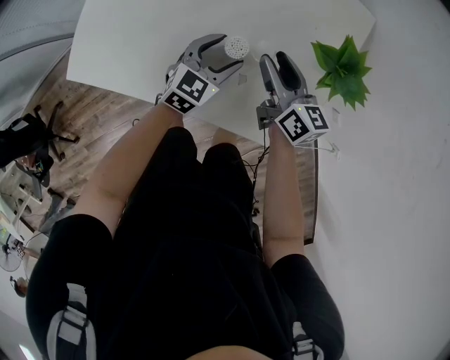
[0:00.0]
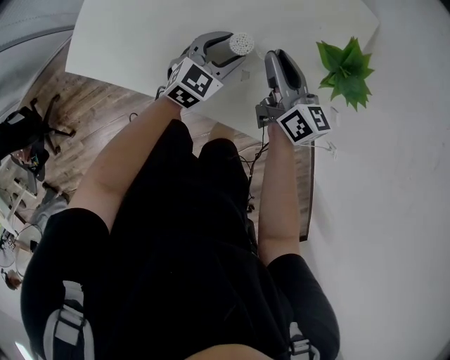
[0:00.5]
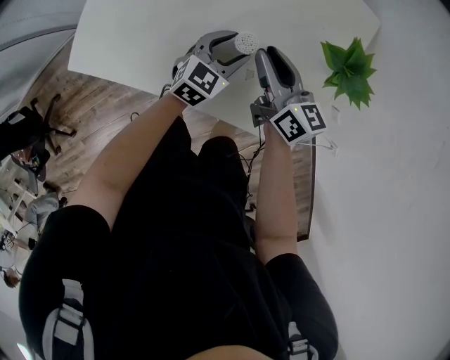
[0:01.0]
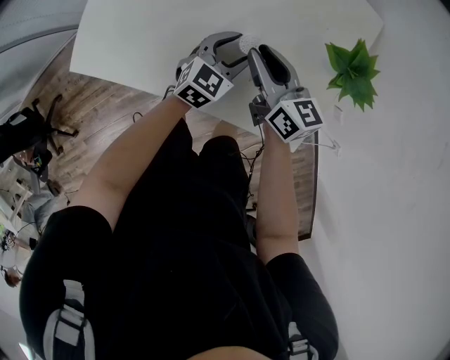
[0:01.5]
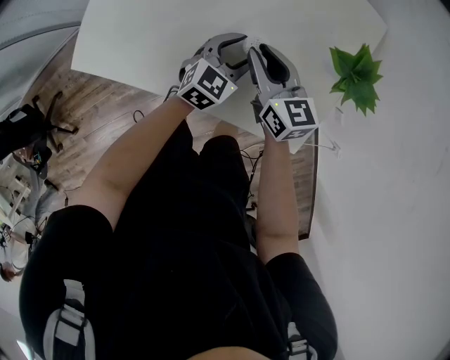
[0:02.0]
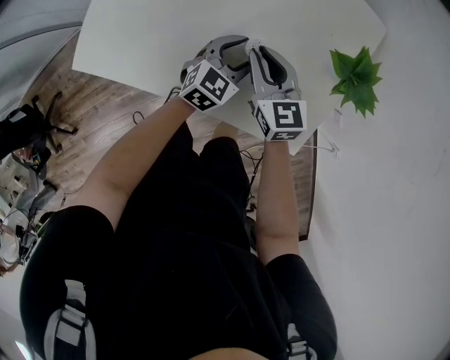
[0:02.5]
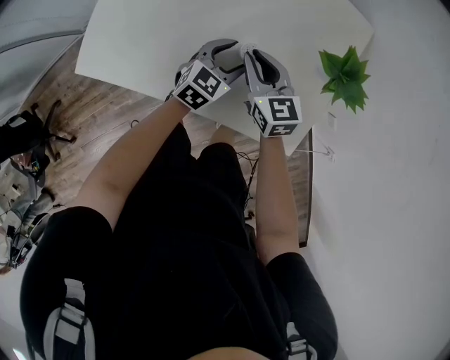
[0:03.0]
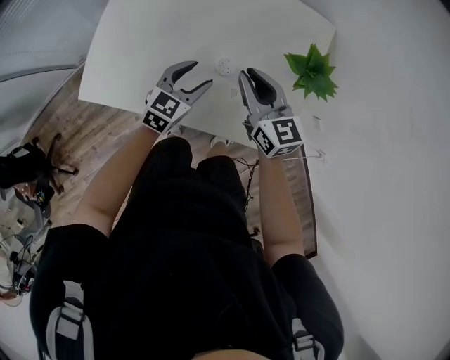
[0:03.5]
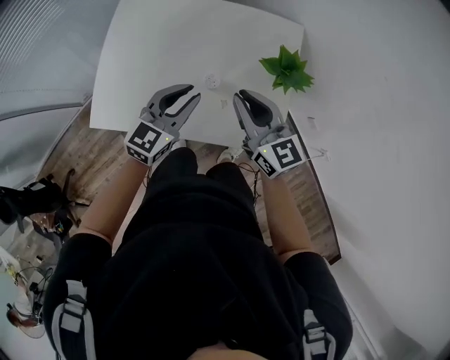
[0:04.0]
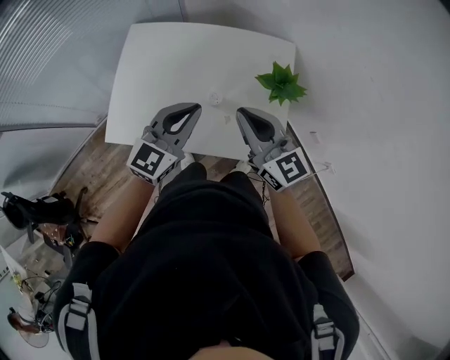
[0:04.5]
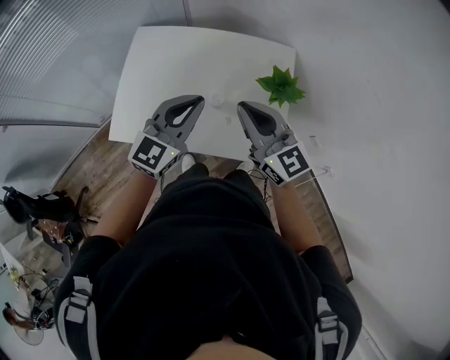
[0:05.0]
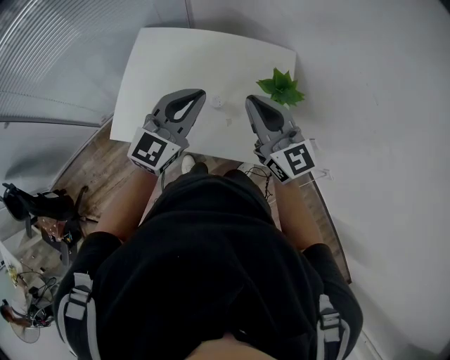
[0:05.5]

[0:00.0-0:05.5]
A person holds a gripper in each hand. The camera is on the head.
0:00.0 to 0:02.0: The right gripper heads to the left, covering roughly 10 cm.
0:02.0 to 0:03.5: The left gripper is displaced upward and to the left by some 10 cm, while the right gripper travels upward by approximately 10 cm.
0:03.5 to 0:05.5: Both grippers move upward, some 30 cm. The left gripper rotates about 30 degrees, and closes its fingers, while the right gripper turns by about 20 degrees.

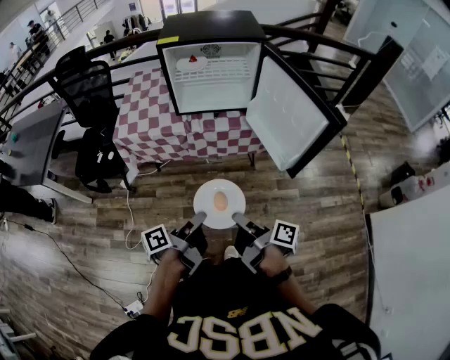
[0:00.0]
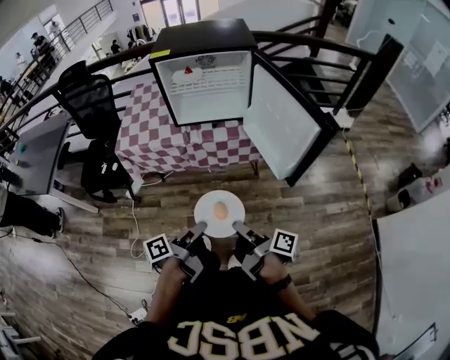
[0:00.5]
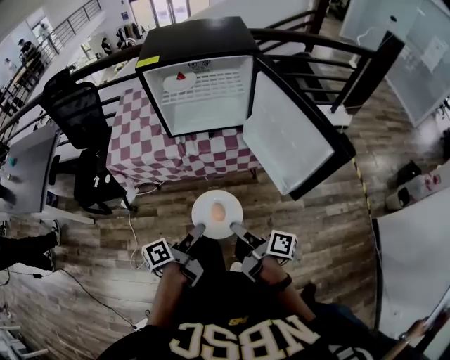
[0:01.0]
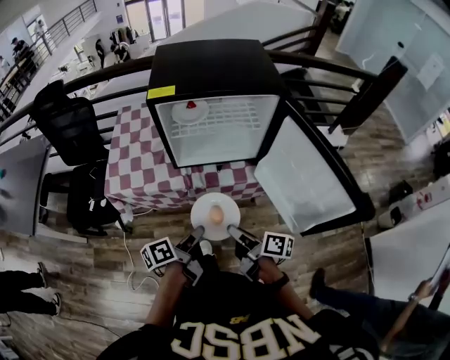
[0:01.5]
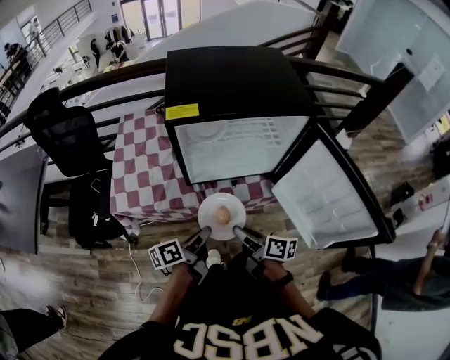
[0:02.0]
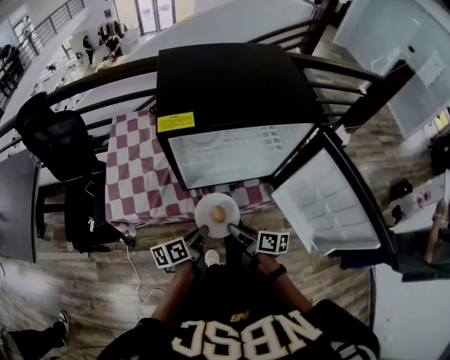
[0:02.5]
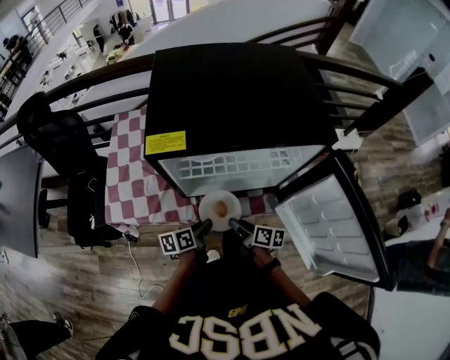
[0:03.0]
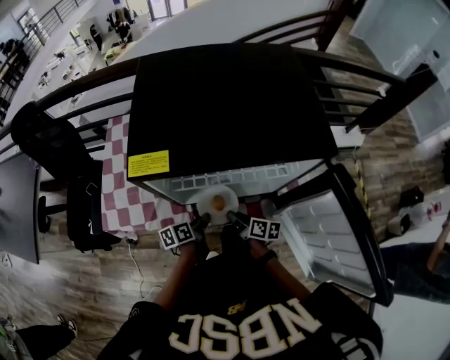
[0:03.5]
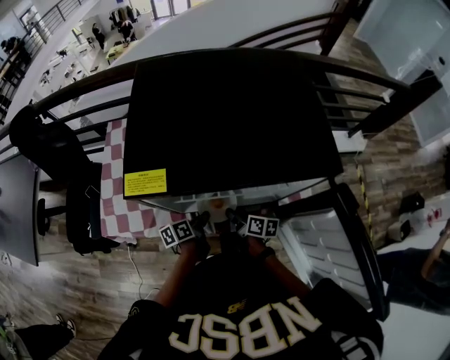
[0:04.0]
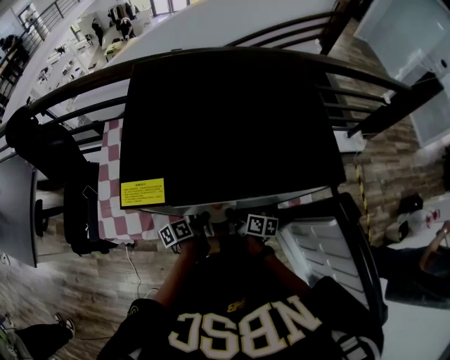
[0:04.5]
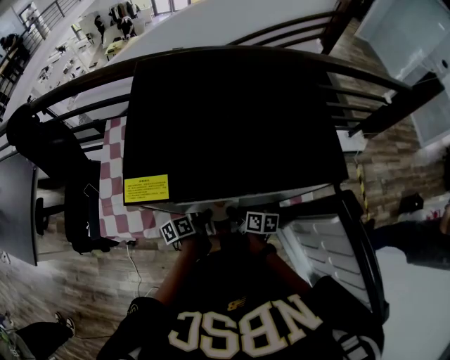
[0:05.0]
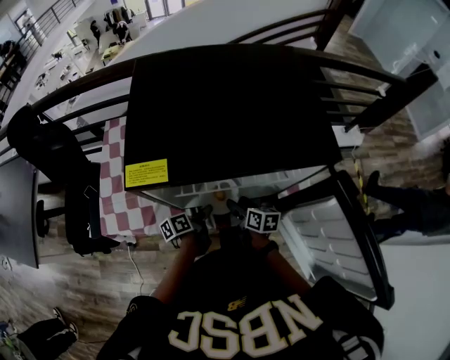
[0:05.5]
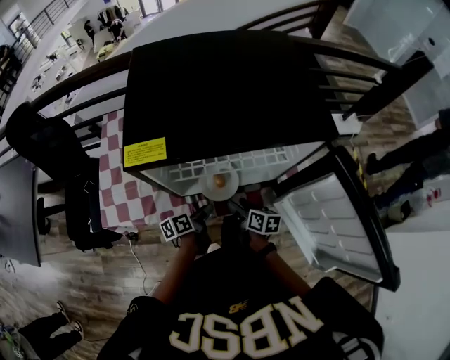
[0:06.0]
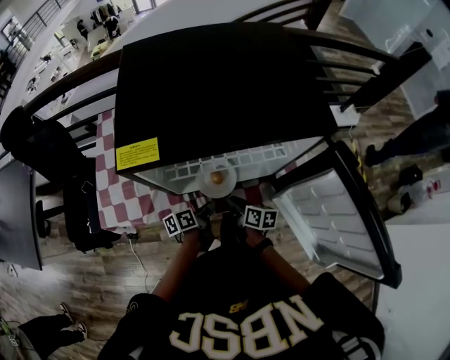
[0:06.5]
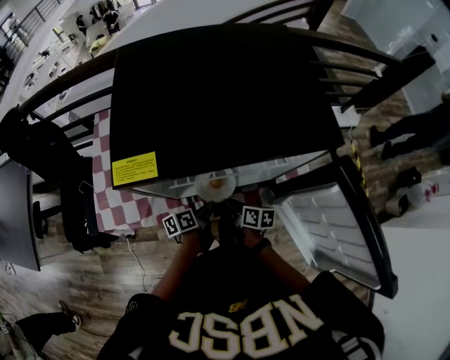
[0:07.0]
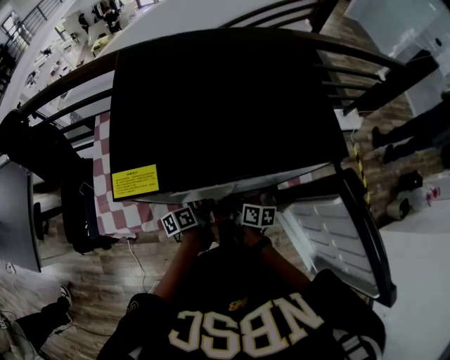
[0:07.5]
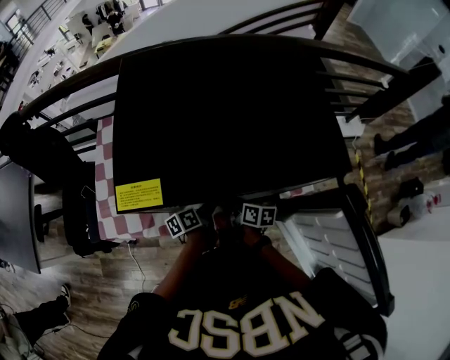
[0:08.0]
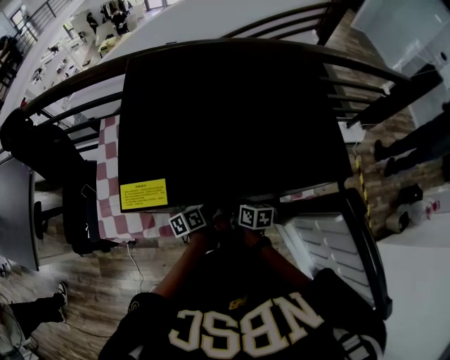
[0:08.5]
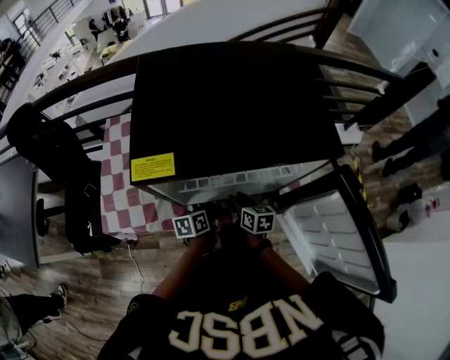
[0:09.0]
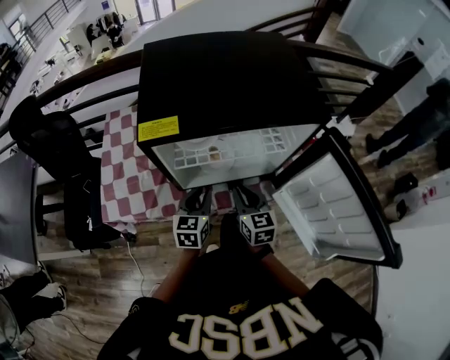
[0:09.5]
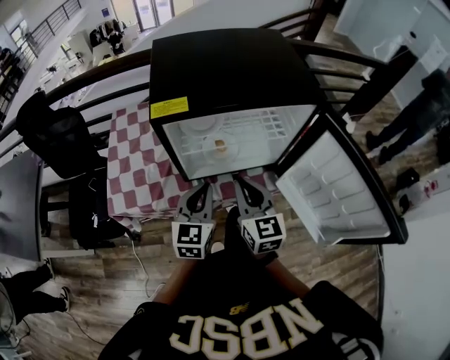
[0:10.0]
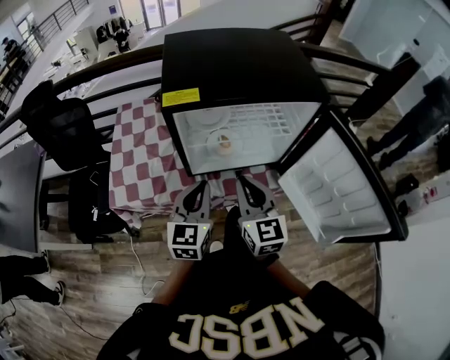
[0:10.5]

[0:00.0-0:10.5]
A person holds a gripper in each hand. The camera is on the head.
0:00.0 to 0:02.0: The two grippers go approximately 35 cm forward. The right gripper swivels approximately 30 degrees.
0:02.0 to 0:04.0: The two grippers go some 30 cm forward and downward.
0:04.0 to 0:06.5: The left gripper changes place by some 5 cm; the right gripper opens, then closes again.
0:06.5 to 0:08.5: Both grippers travel together forward, approximately 10 cm.
0:08.5 to 0:10.5: The grippers both shift upward and backward by approximately 30 cm. The right gripper changes its angle by some 50 degrees, while the left gripper rolls clockwise, seen from behind, by roughly 60 degrees, and opens, then closes again.

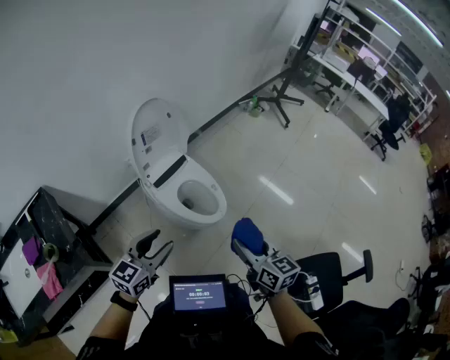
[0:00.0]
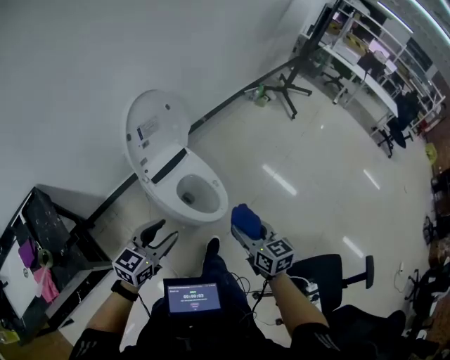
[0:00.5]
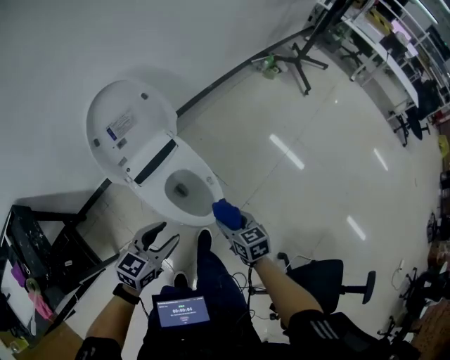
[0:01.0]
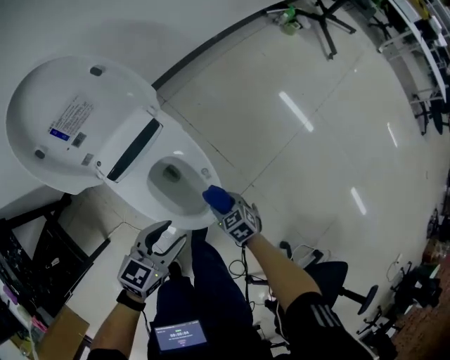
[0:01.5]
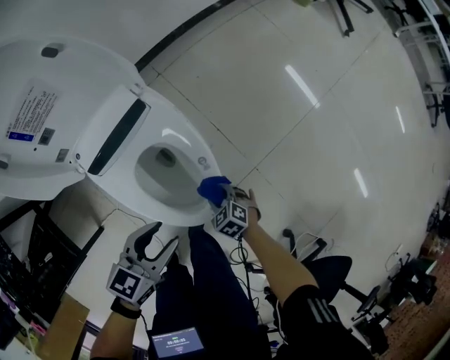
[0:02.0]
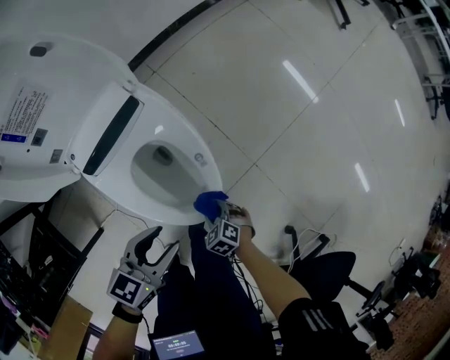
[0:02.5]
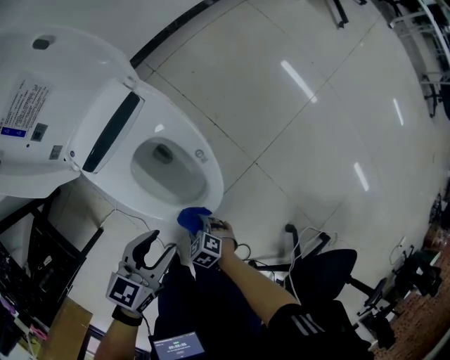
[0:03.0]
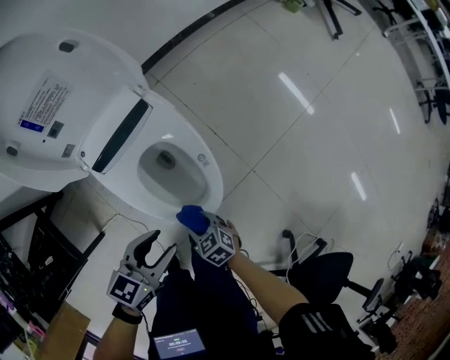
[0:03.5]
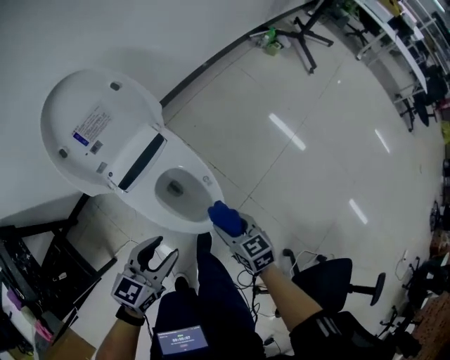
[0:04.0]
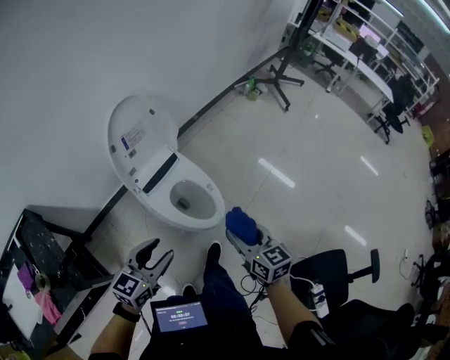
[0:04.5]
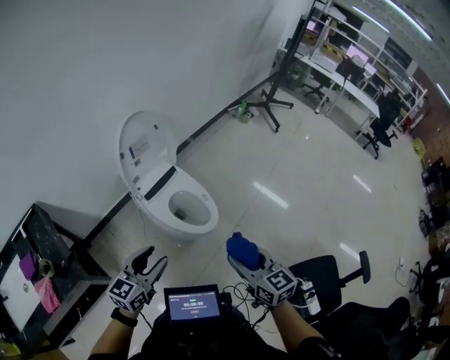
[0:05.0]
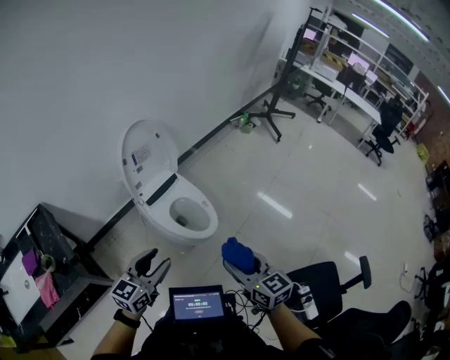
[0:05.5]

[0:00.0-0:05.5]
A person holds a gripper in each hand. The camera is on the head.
0:00.0 to 0:02.0: The left gripper is displaced downward, forward and to the right by about 50 cm, and turns by about 30 degrees; the right gripper shifts roughly 70 cm downward and forward, and points its fingers roughly 50 degrees further downward.
0:02.0 to 0:03.5: The left gripper shifts by roughly 5 cm. Meanwhile the right gripper changes place by about 15 cm.
0:03.5 to 0:05.5: The grippers both shift upward and backward by some 60 cm. The left gripper rotates approximately 30 degrees. The right gripper tilts its fingers approximately 30 degrees upward.

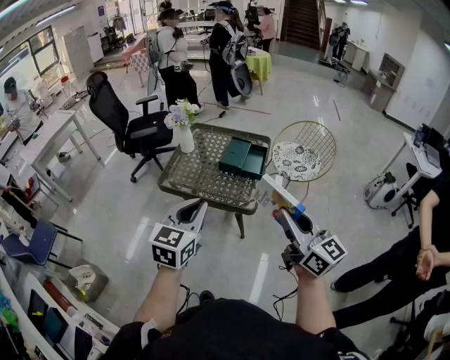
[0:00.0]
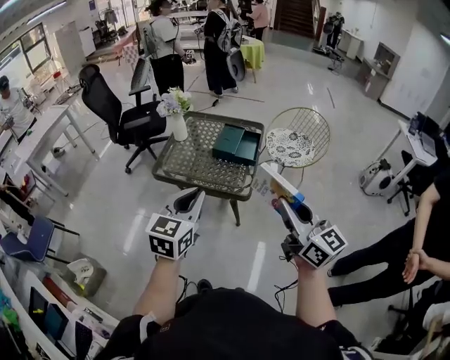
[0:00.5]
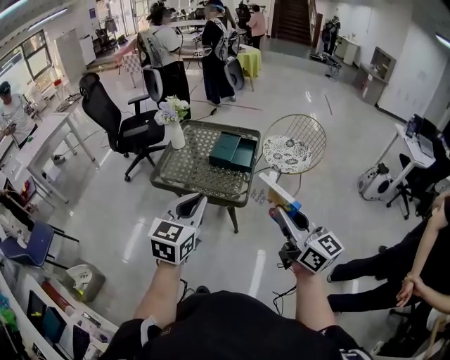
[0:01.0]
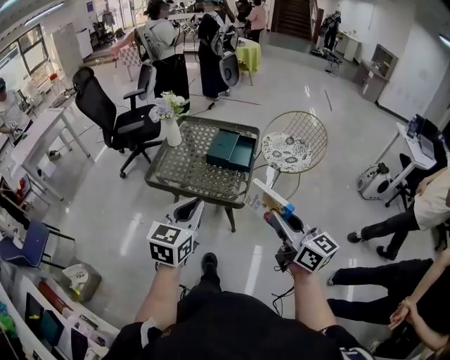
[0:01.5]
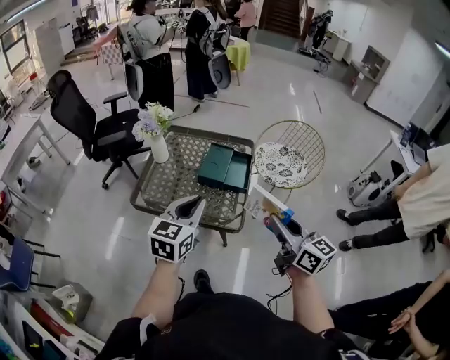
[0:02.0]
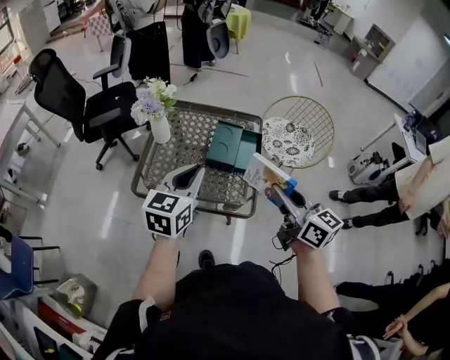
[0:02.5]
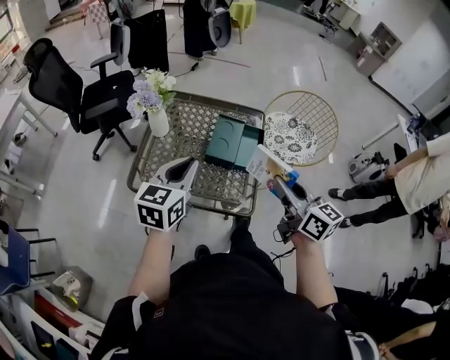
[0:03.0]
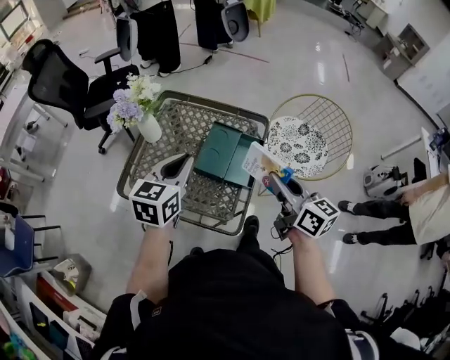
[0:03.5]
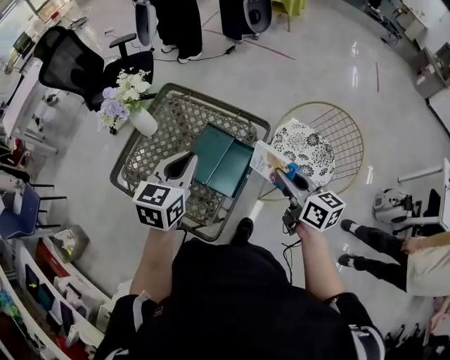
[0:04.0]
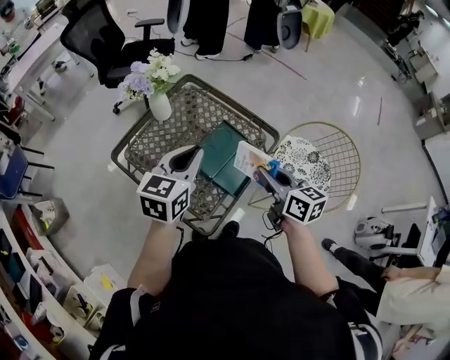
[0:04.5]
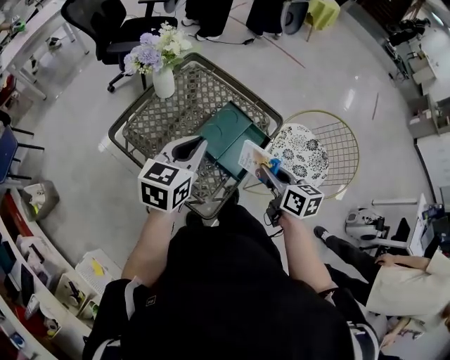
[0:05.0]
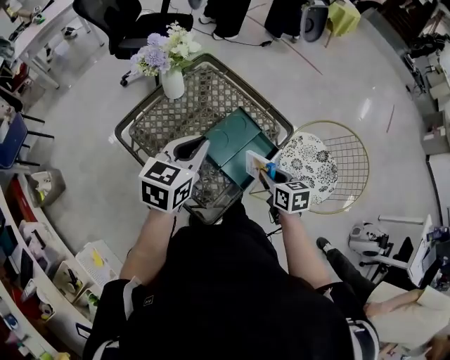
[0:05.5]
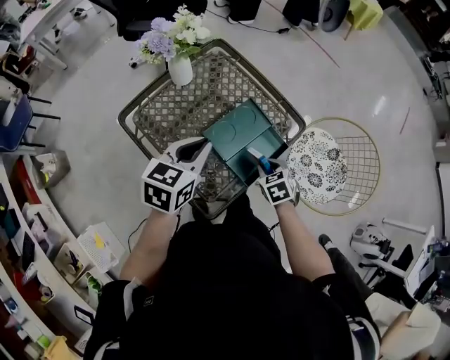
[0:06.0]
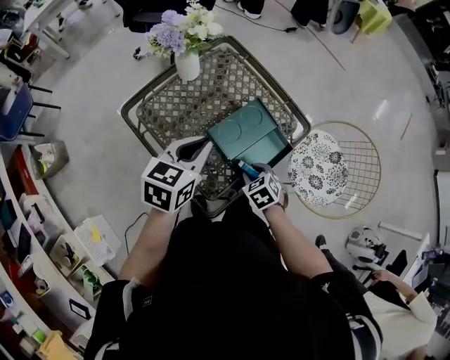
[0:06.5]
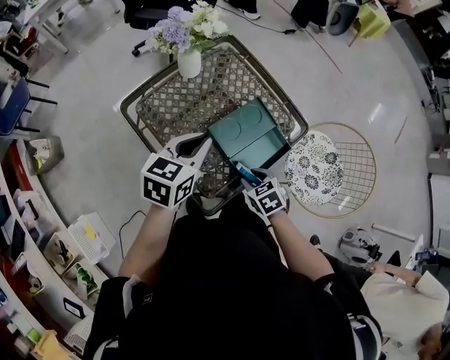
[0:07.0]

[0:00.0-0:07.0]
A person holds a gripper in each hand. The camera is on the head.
0:00.0 to 0:02.0: The left gripper moves forward, roughly 15 cm, while the right gripper heads forward and downward, covering approximately 15 cm.
0:02.0 to 0:03.5: Both grippers move forward, about 25 cm.
0:03.5 to 0:05.0: The left gripper goes to the right and returns, approximately 10 cm each way. Meanwhile the right gripper heads downward and forward, covering some 10 cm, goes to the right and returns, some 15 cm each way, and swivels approximately 30 degrees.
0:05.0 to 0:07.0: The left gripper is displaced downward by roughly 5 cm, while the right gripper shifts approximately 15 cm downward, and tilts its fingers approximately 40 degrees downward.
